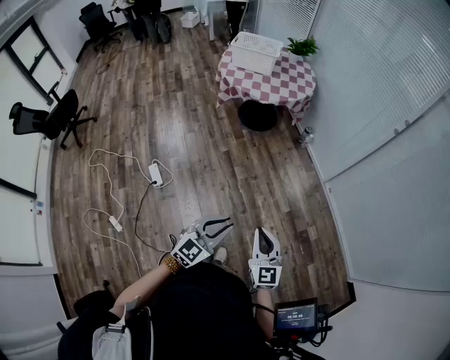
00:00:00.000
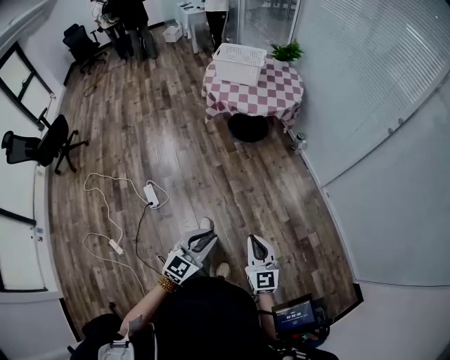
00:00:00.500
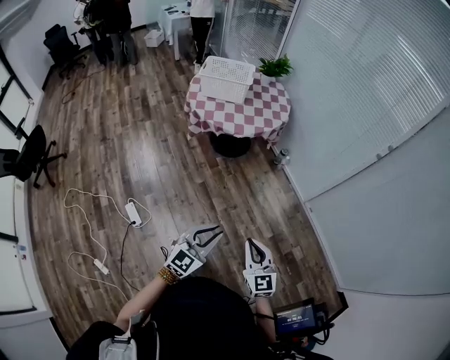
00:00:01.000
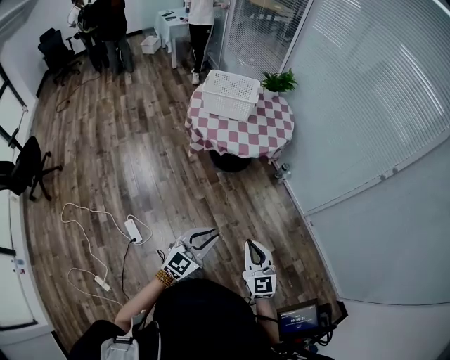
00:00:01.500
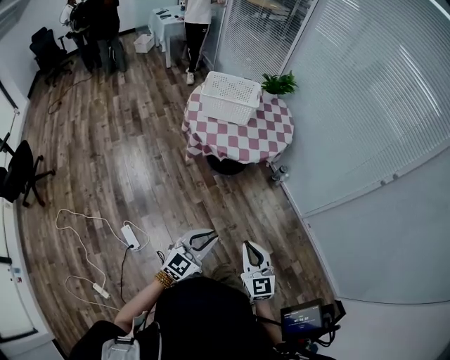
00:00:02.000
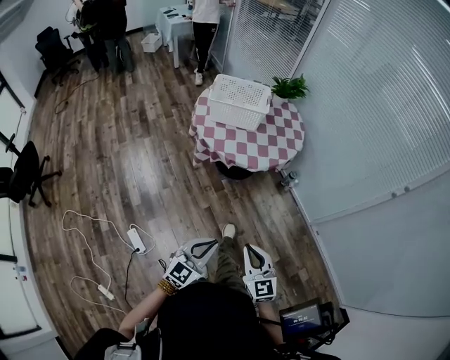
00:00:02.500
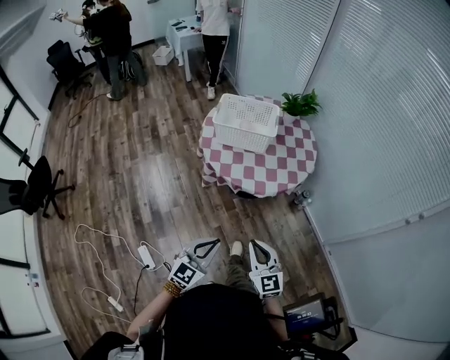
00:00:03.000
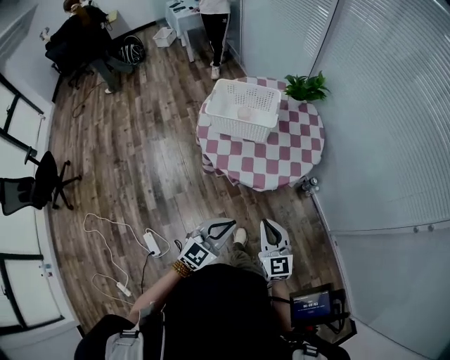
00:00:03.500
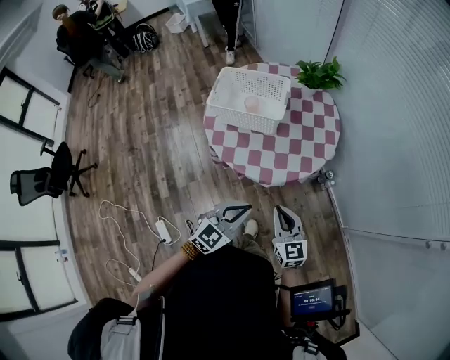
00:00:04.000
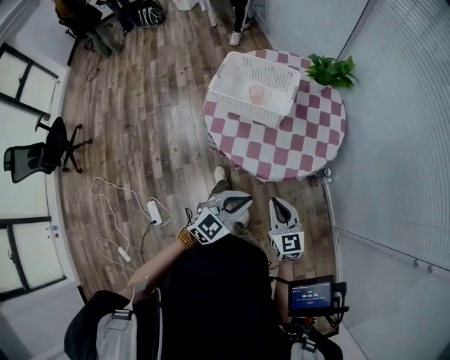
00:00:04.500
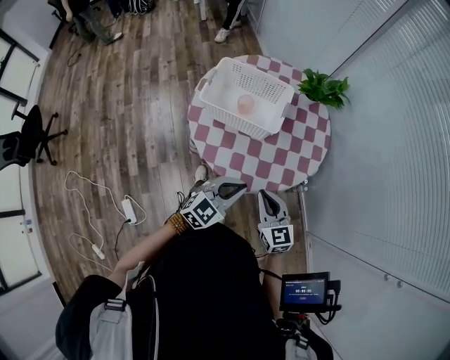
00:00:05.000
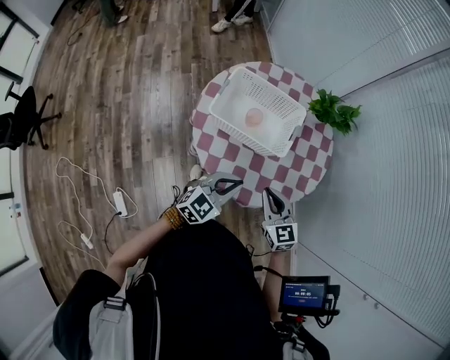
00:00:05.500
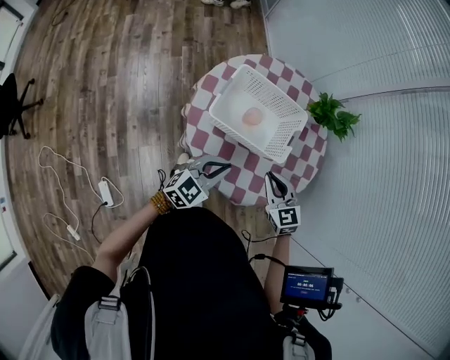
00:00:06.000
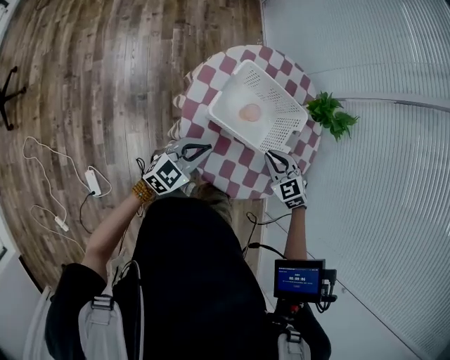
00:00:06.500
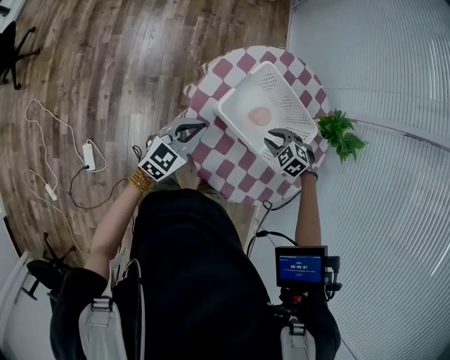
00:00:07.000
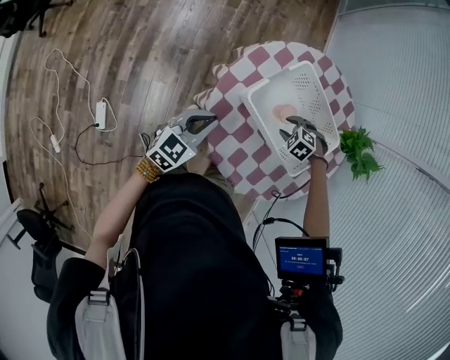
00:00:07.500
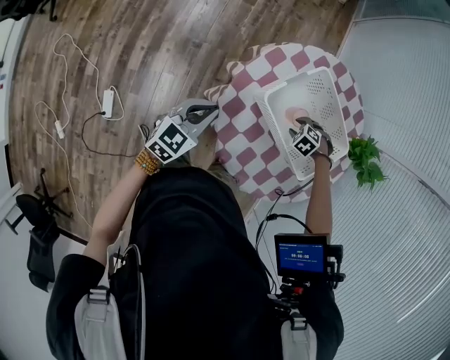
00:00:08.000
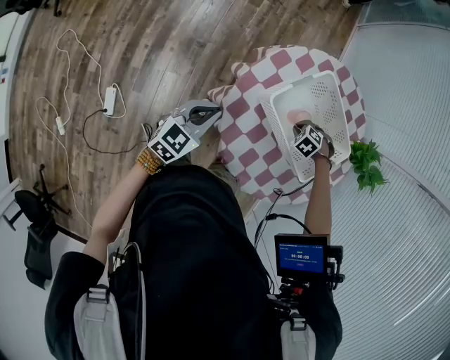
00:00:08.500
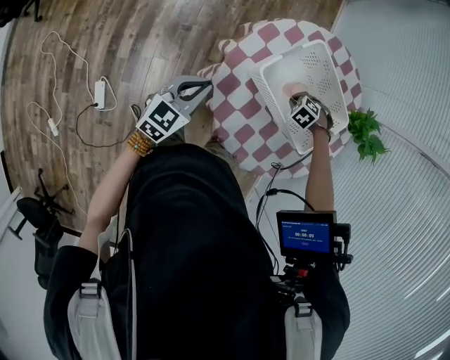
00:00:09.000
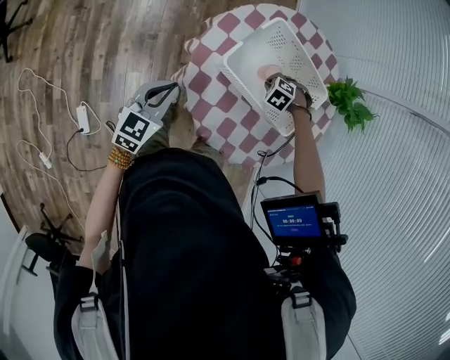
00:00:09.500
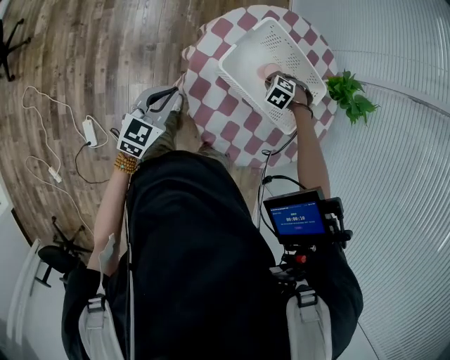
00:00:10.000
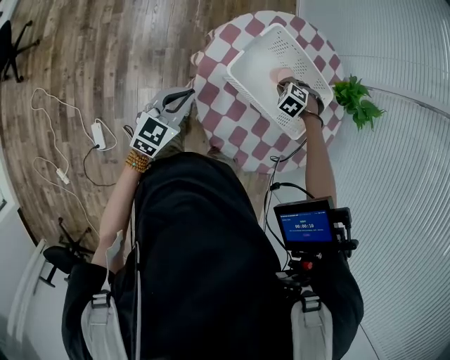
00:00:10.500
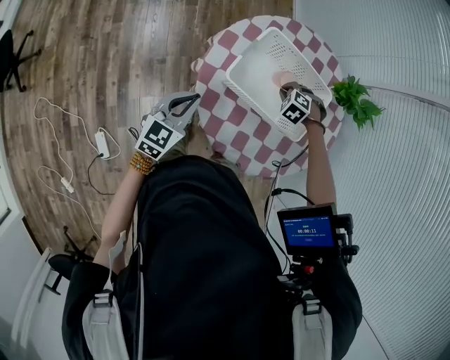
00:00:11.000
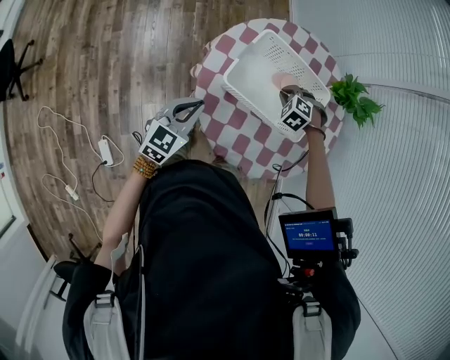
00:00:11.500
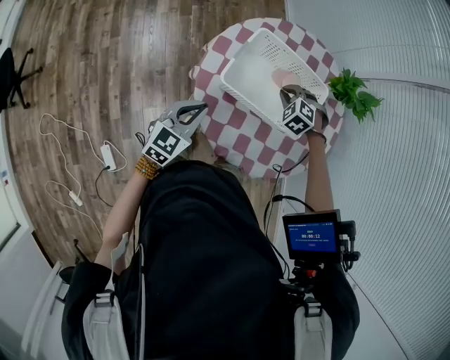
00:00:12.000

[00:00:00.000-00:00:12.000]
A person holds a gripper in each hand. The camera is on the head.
00:00:00.000 to 00:00:02.000: The two grippers go approximately 35 cm forward and to the left.
00:00:02.000 to 00:00:04.000: The two grippers go some 40 cm forward.
00:00:04.000 to 00:00:06.000: The two grippers go approximately 35 cm forward and to the left. The right gripper turns by some 30 degrees.
00:00:06.000 to 00:00:08.000: The right gripper travels downward by approximately 25 cm, tips its fingers downward by some 60 degrees, and opens up. The left gripper moves some 20 cm, and changes its angle by roughly 40 degrees.
00:00:08.000 to 00:00:10.000: The right gripper closes.
00:00:10.000 to 00:00:12.000: The left gripper ends up some 5 cm from where it was, while the right gripper heads upward, covering some 10 cm, and turns by approximately 20 degrees.

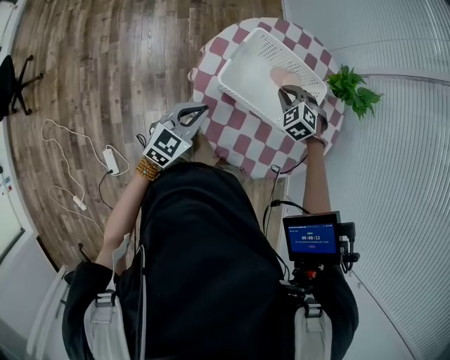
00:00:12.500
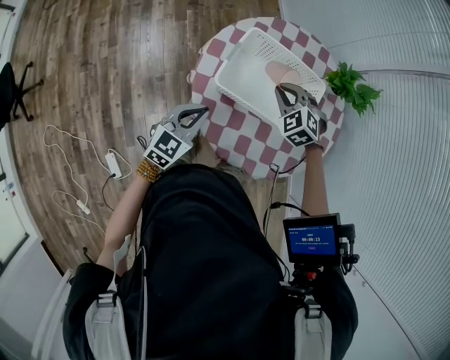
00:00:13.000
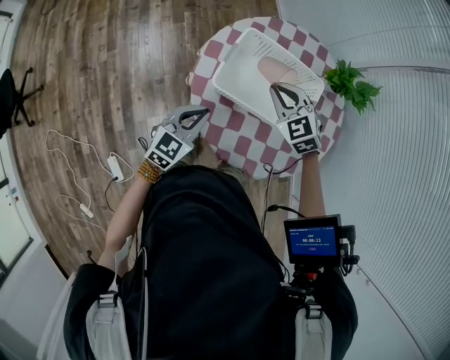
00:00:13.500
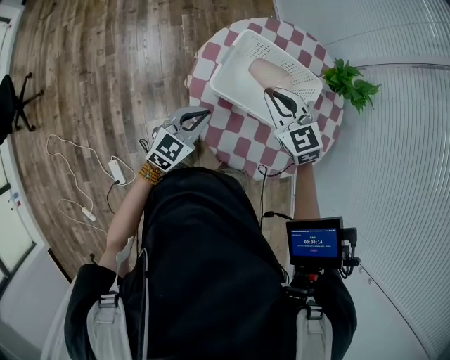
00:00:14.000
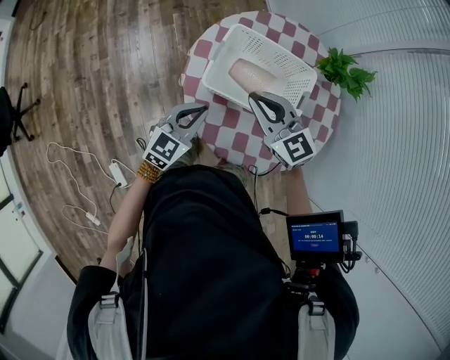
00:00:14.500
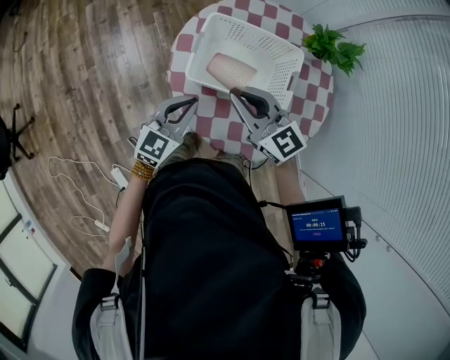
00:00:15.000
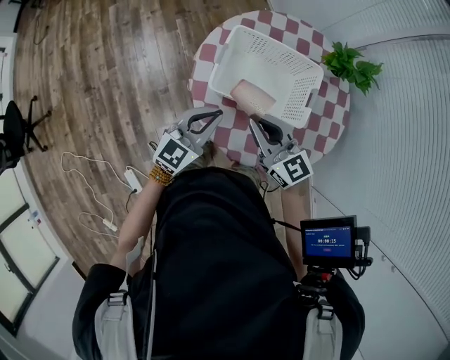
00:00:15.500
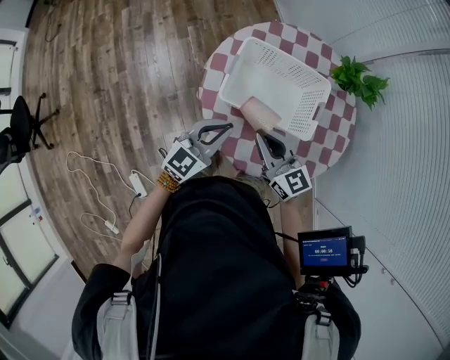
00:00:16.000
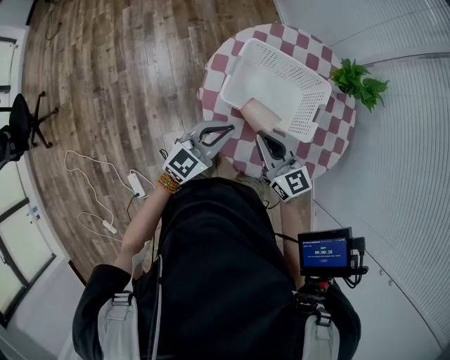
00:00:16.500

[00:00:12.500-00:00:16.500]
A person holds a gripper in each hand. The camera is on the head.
00:00:12.500 to 00:00:14.500: The right gripper goes some 15 cm upward, backward and to the left, and angles its fingers upward, by about 40 degrees.
00:00:14.500 to 00:00:16.500: The right gripper heads backward, covering roughly 5 cm.

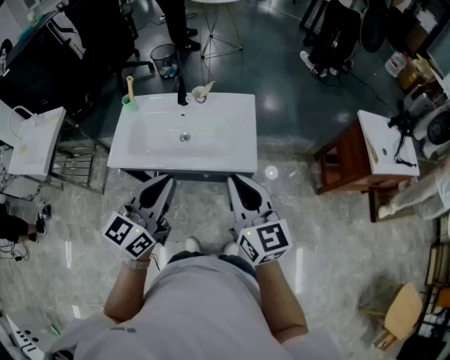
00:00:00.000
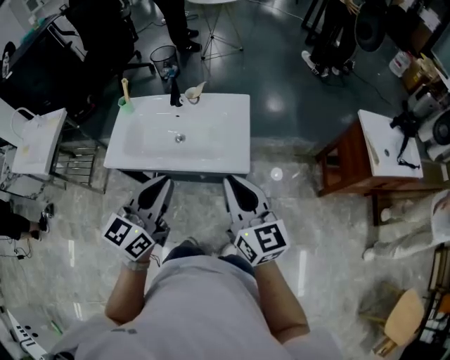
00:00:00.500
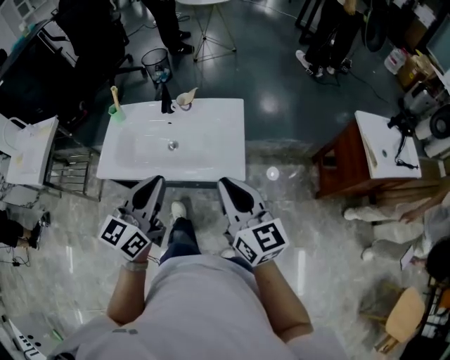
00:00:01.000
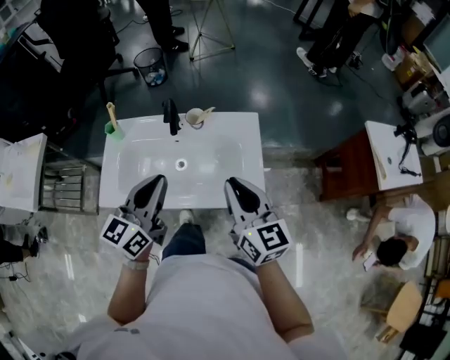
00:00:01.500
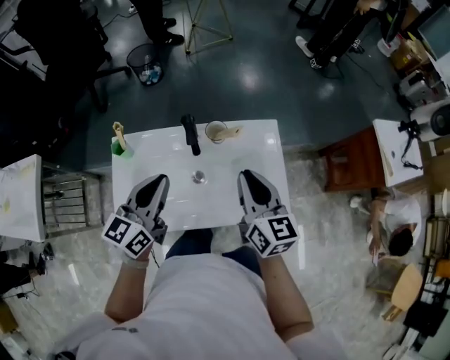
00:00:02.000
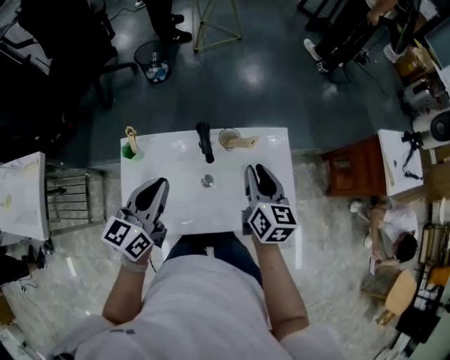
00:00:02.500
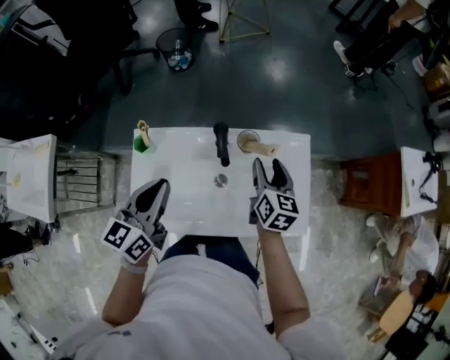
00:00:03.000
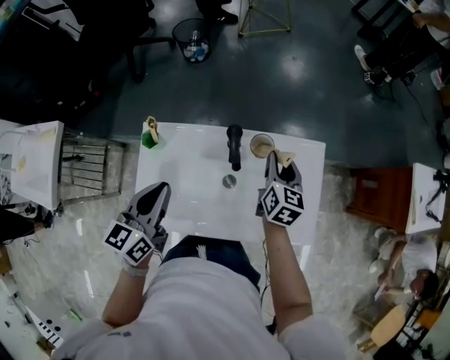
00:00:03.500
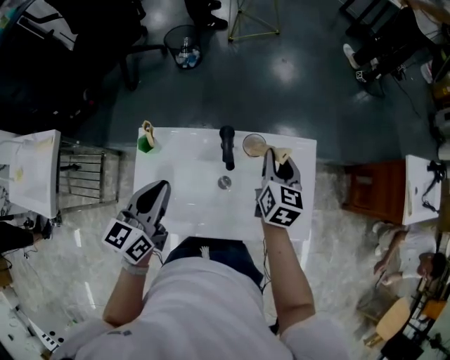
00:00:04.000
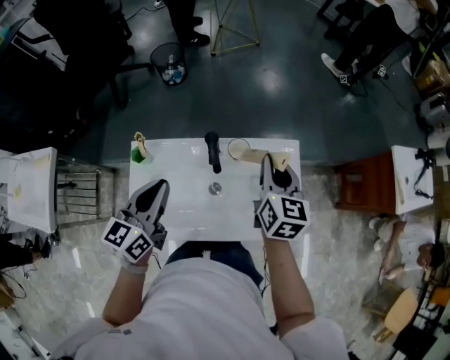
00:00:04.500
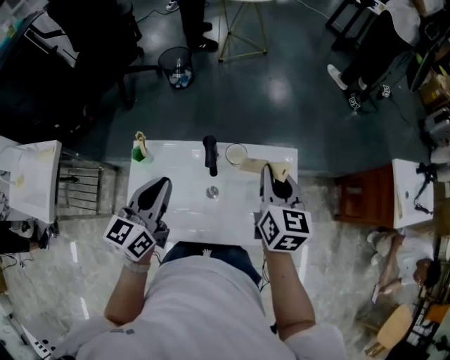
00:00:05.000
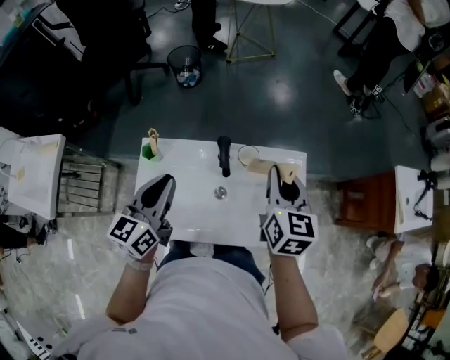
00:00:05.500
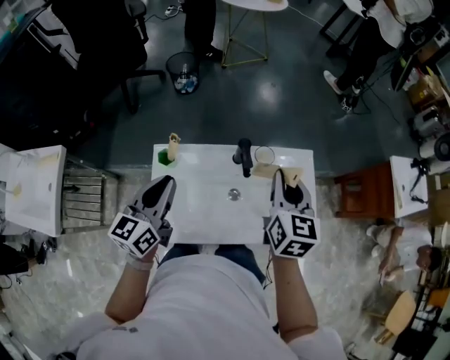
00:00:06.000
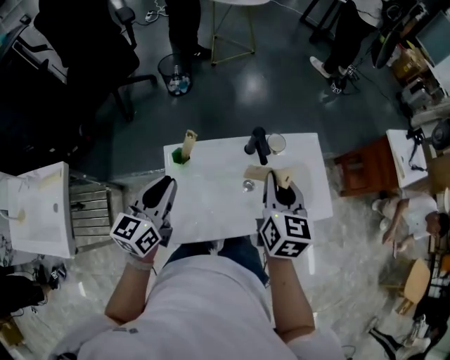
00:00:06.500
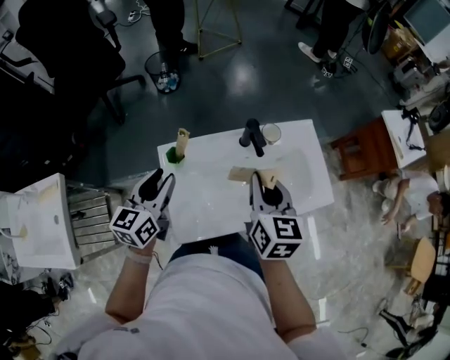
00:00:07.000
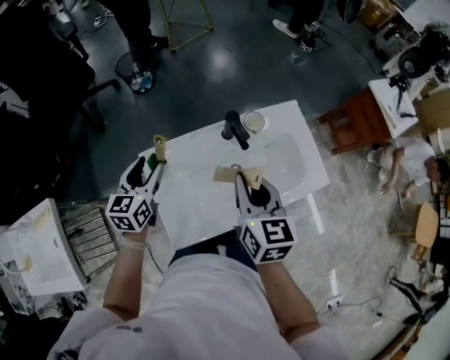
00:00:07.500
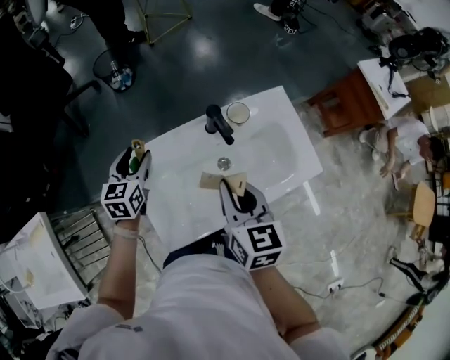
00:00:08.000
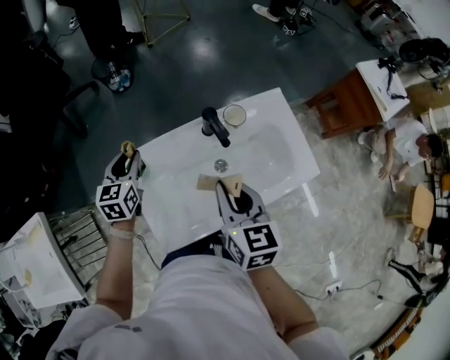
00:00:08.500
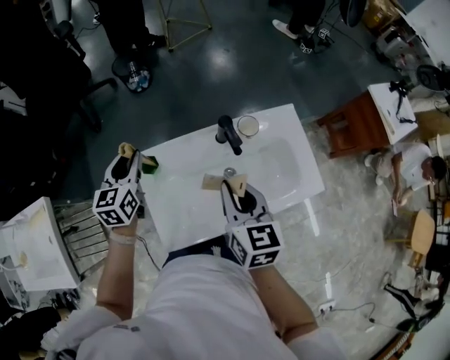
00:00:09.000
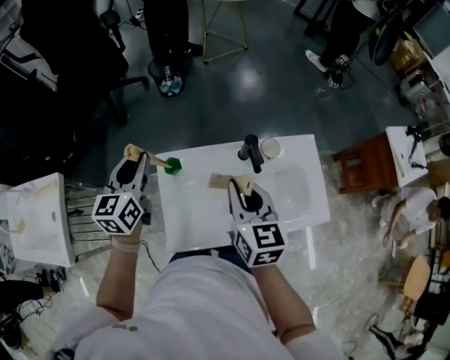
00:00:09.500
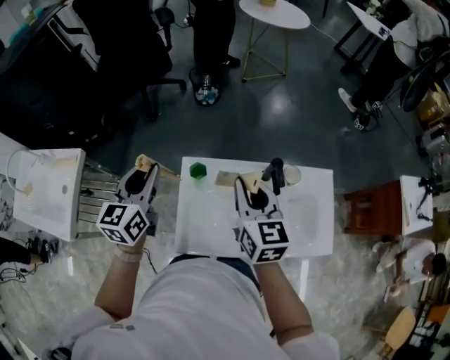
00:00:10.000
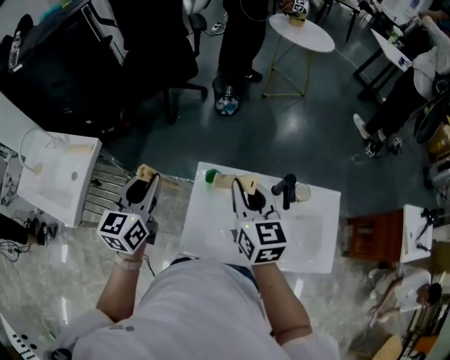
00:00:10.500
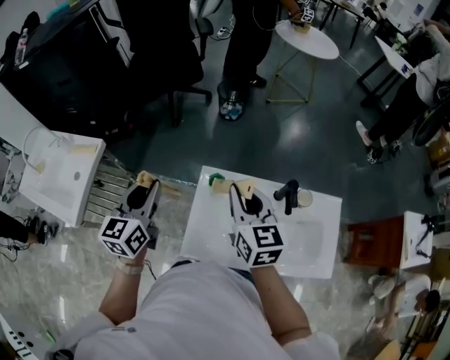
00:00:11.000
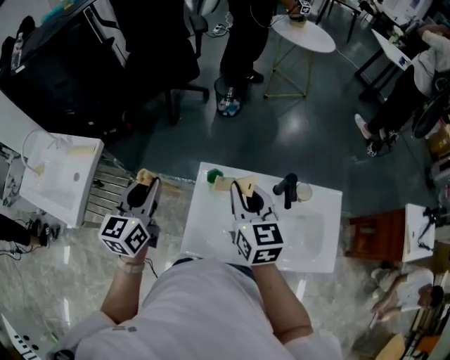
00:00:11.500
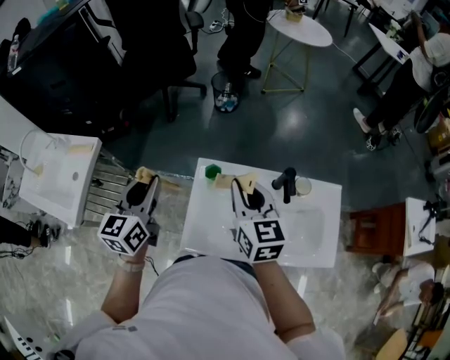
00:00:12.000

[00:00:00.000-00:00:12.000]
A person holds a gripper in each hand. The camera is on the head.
00:00:00.000 to 00:00:02.000: The two grippers go about 35 cm forward and to the left.
00:00:02.000 to 00:00:04.000: The left gripper is displaced to the left by roughly 10 cm. The right gripper shifts roughly 15 cm forward and downward, and opens, then closes once more.
00:00:04.000 to 00:00:06.000: The left gripper moves to the left, about 10 cm, while the right gripper heads upward, backward and to the left, covering some 20 cm.
00:00:06.000 to 00:00:08.000: The right gripper shifts roughly 15 cm to the left, backward and downward. The left gripper travels downward, forward and to the left by roughly 20 cm, rotates roughly 30 degrees, and opens.
00:00:08.000 to 00:00:10.000: The right gripper moves to the left, upward and forward, about 15 cm, and changes its angle by about 30 degrees. Meanwhile the left gripper moves upward, to the left and backward, about 25 cm, rotates some 30 degrees, and closes its fingers.
00:00:10.000 to 00:00:12.000: The left gripper travels backward by approximately 5 cm. Meanwhile the right gripper heads to the left, covering some 5 cm.
